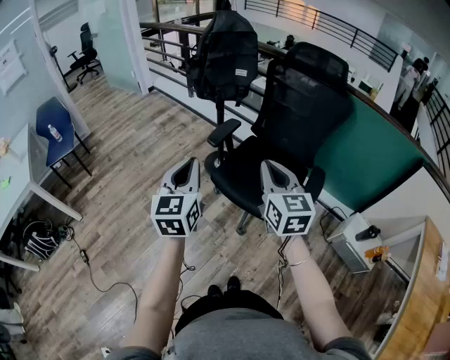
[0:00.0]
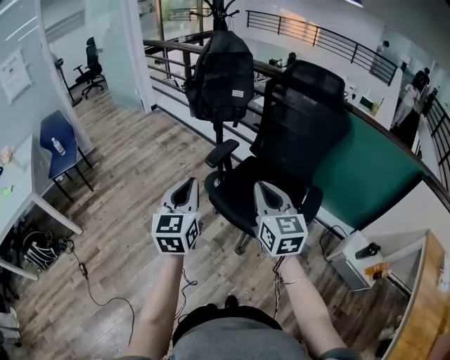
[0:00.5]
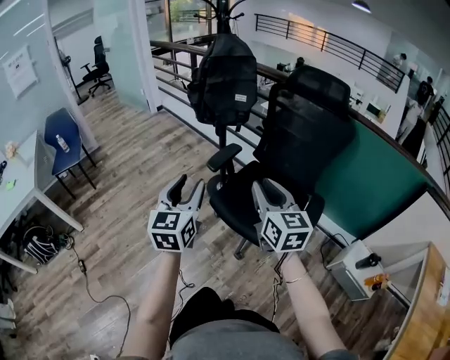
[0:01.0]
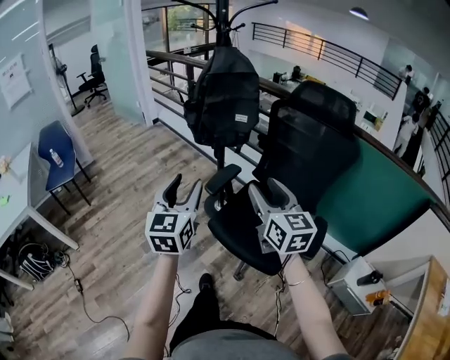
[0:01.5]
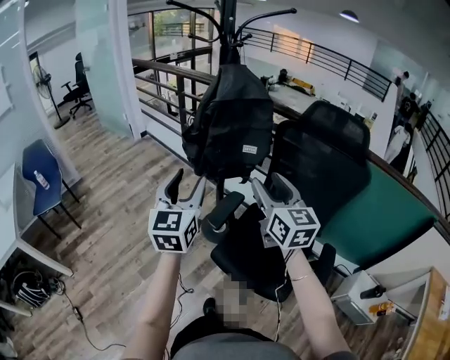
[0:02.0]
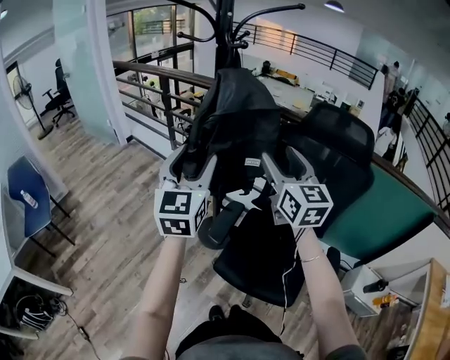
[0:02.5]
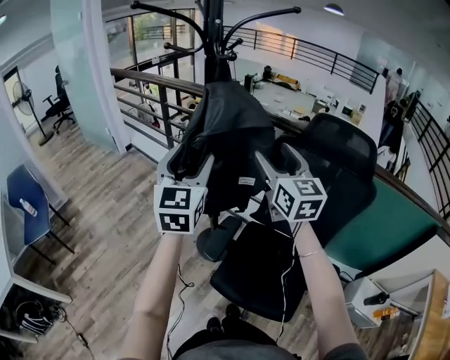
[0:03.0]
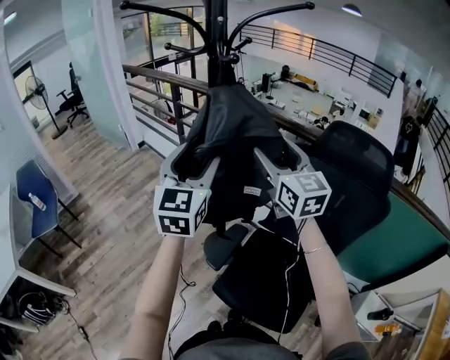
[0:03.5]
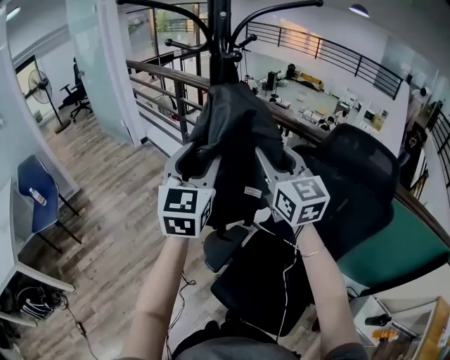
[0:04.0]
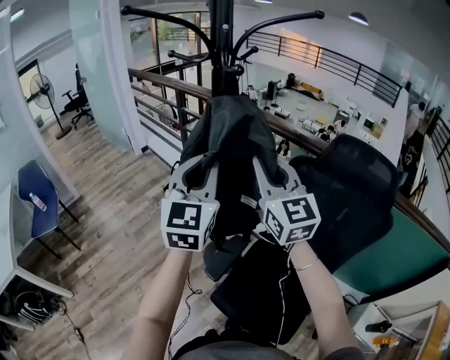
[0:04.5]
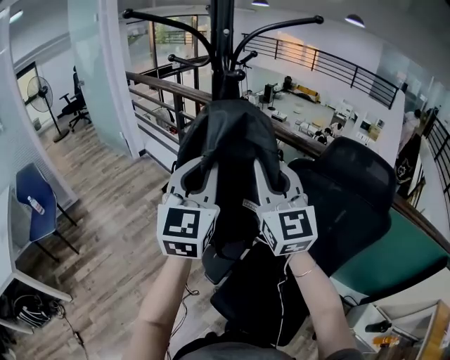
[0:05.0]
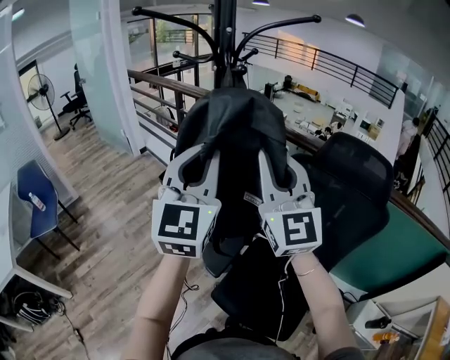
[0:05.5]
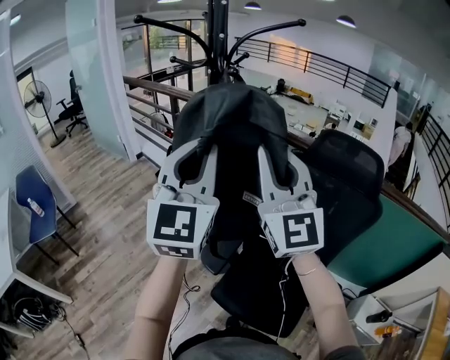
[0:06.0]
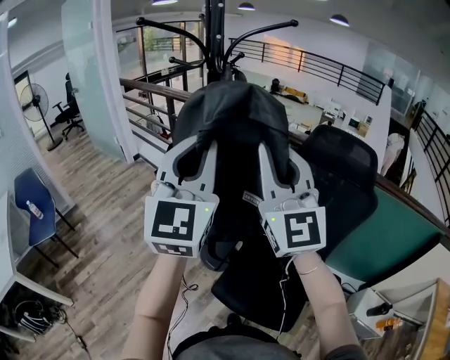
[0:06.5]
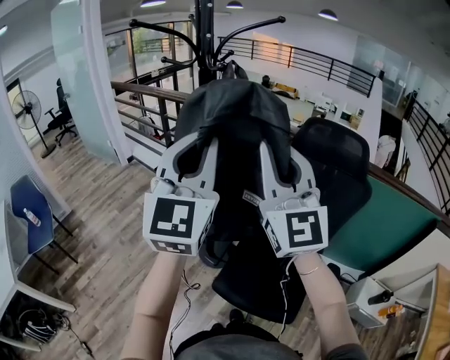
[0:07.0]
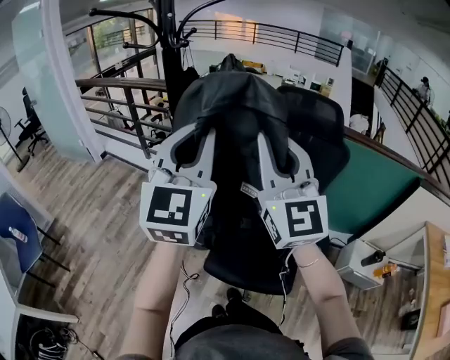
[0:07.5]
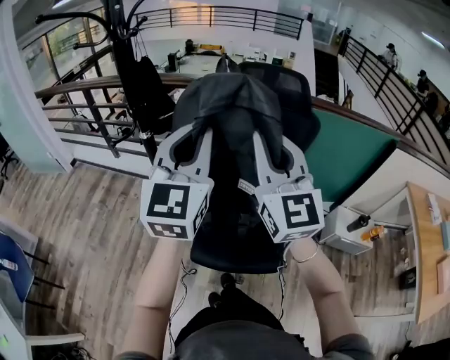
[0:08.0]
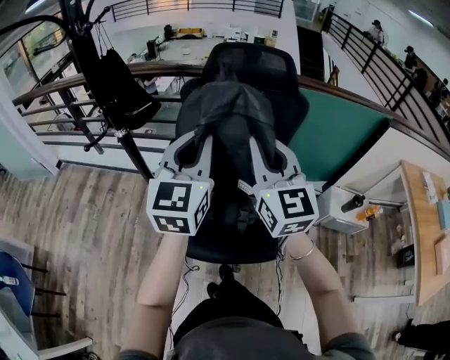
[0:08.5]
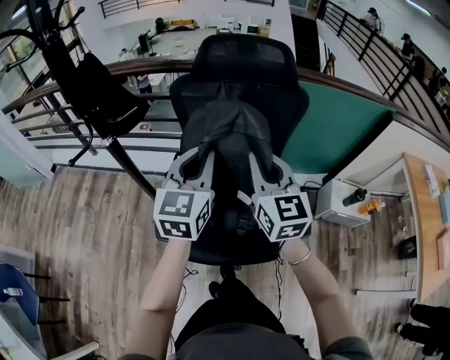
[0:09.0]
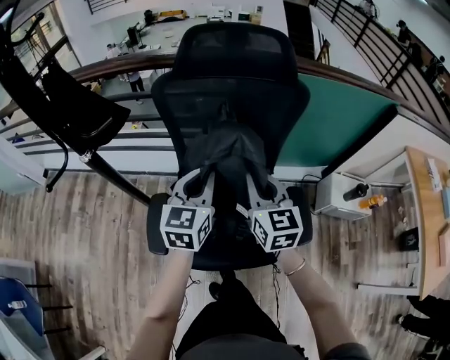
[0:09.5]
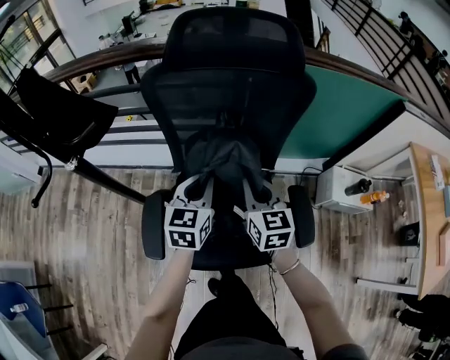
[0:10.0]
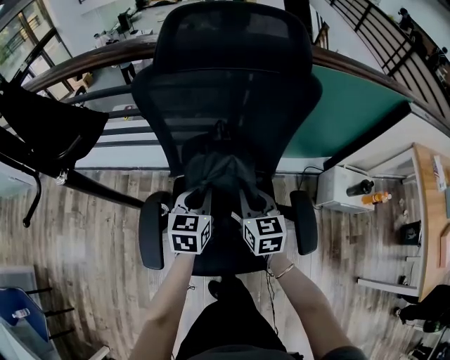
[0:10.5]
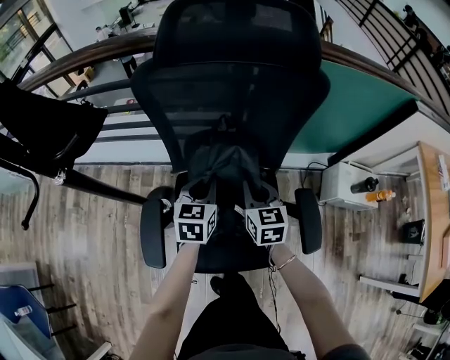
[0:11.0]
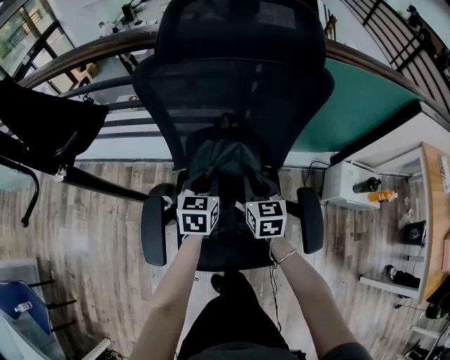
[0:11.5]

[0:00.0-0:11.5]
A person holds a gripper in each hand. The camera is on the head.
0:00.0 to 0:02.0: Both grippers move forward, roughly 30 cm. The left gripper opens; the right gripper opens up.
0:02.0 to 0:04.0: The two grippers go approximately 20 cm forward.
0:04.0 to 0:06.0: The grippers both shift backward and upward by approximately 15 cm. The right gripper changes its angle by approximately 30 degrees, and closes, while the left gripper closes.
0:06.0 to 0:07.5: The left gripper moves to the right and backward, some 10 cm. Meanwhile the right gripper is displaced backward and to the right by approximately 10 cm.
0:07.5 to 0:09.5: The left gripper travels downward, forward and to the right by about 40 cm, and rotates some 40 degrees. The right gripper travels downward and to the right by about 35 cm, and tilts its fingers roughly 30 degrees downward.
0:09.5 to 0:11.5: Both grippers move downward and forward, about 20 cm.

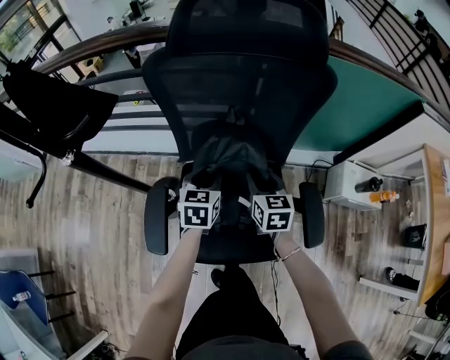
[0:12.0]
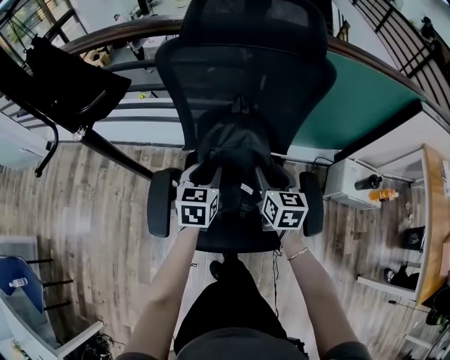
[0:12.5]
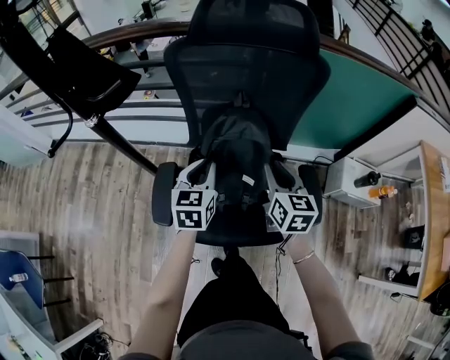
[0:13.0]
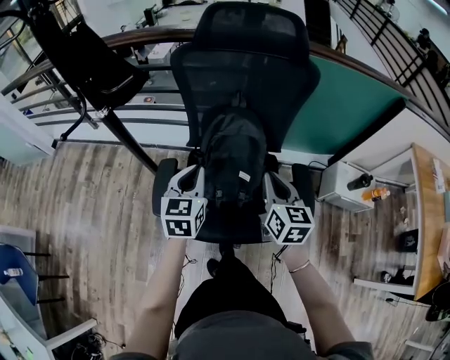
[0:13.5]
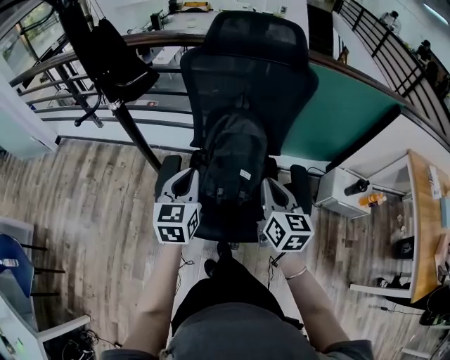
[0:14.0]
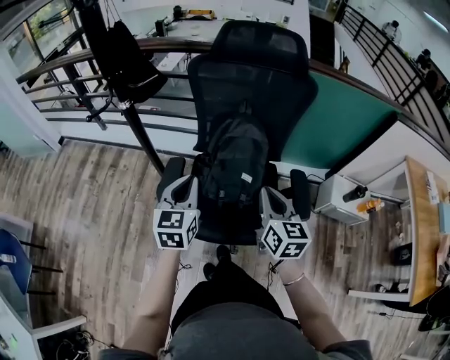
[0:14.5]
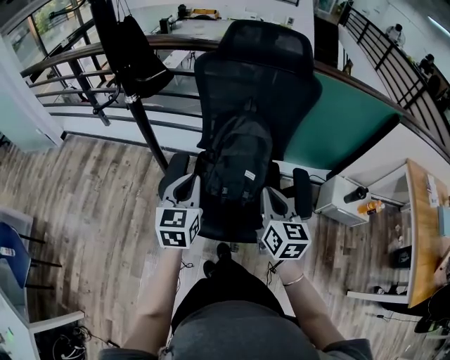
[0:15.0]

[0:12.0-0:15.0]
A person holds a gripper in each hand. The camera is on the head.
0:12.0 to 0:13.5: Both grippers move backward and upward, about 20 cm. The left gripper closes its fingers. The right gripper closes up.
0:13.5 to 0:15.0: Both grippers travel together backward, some 10 cm.

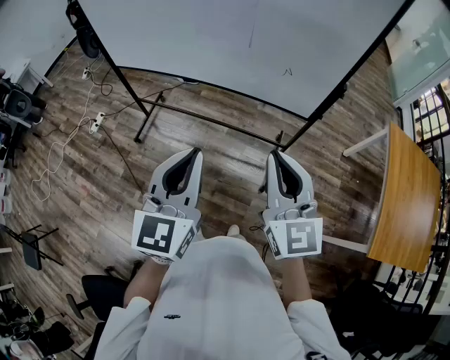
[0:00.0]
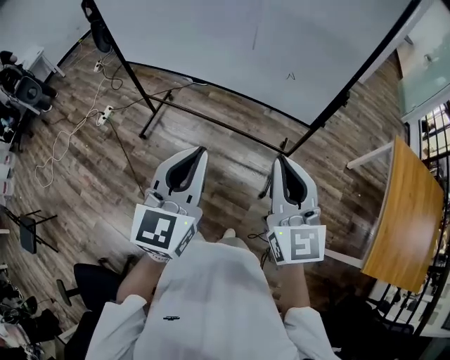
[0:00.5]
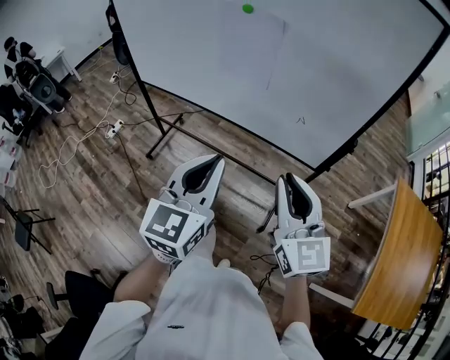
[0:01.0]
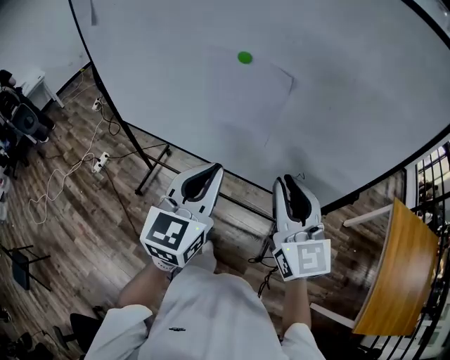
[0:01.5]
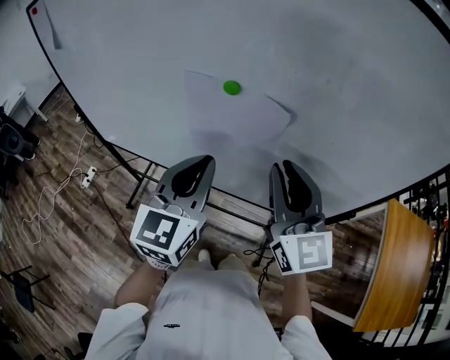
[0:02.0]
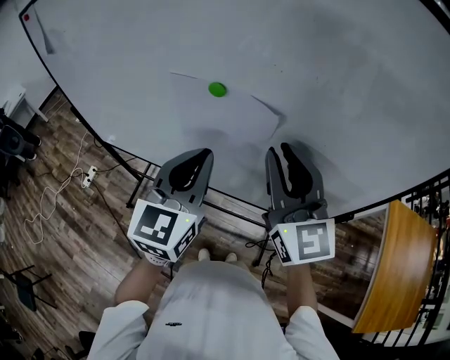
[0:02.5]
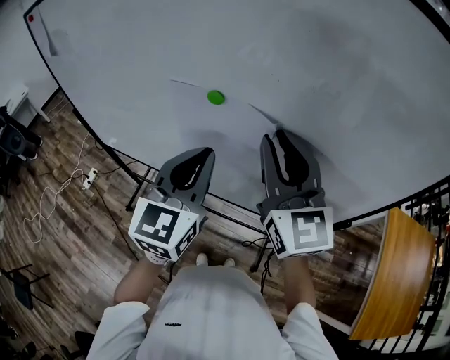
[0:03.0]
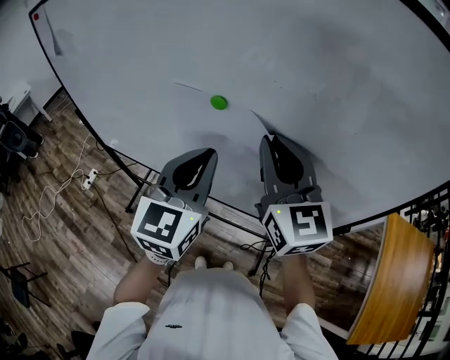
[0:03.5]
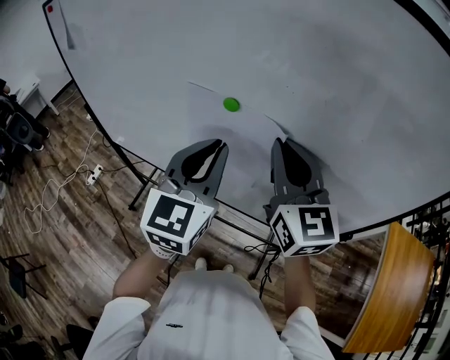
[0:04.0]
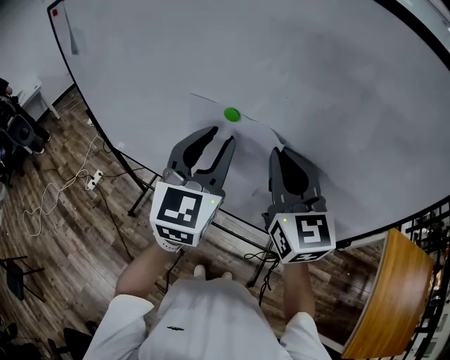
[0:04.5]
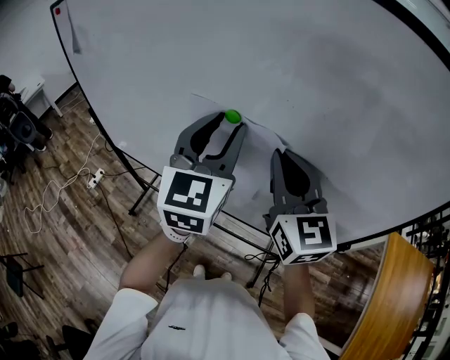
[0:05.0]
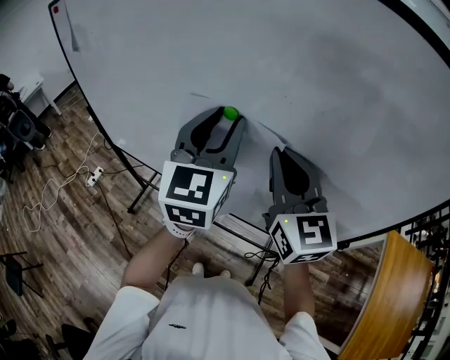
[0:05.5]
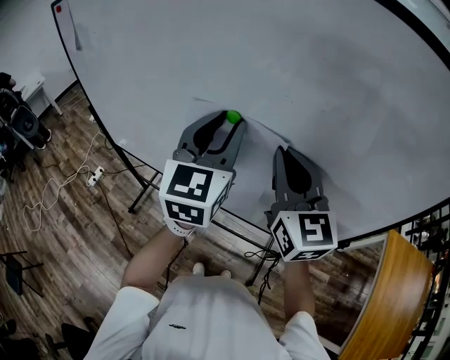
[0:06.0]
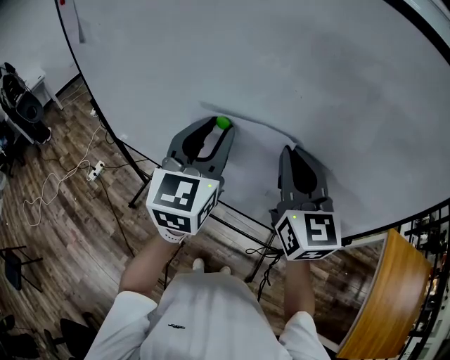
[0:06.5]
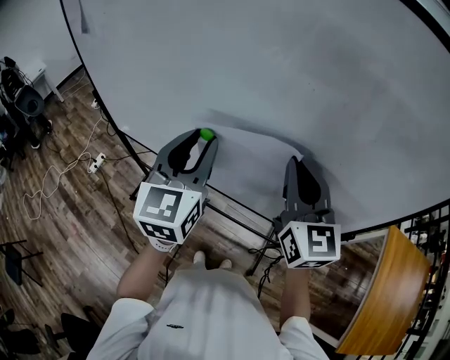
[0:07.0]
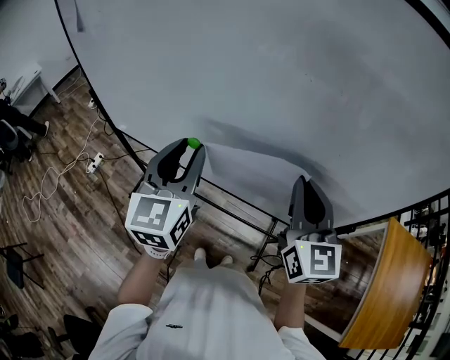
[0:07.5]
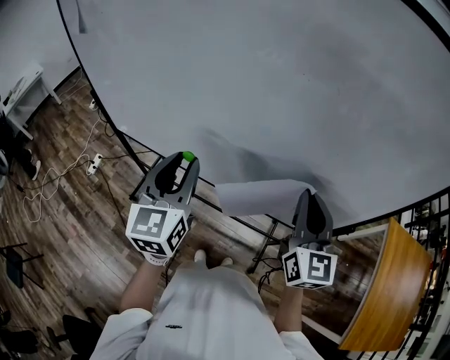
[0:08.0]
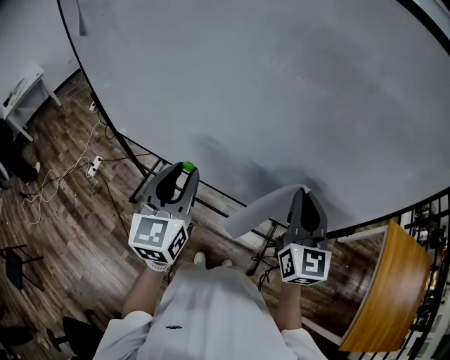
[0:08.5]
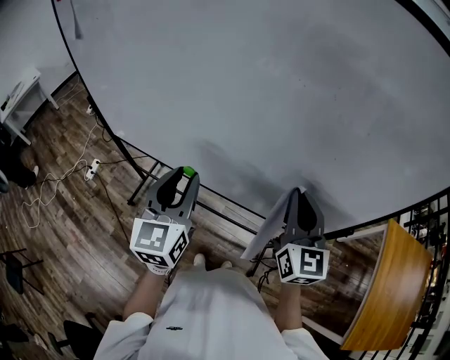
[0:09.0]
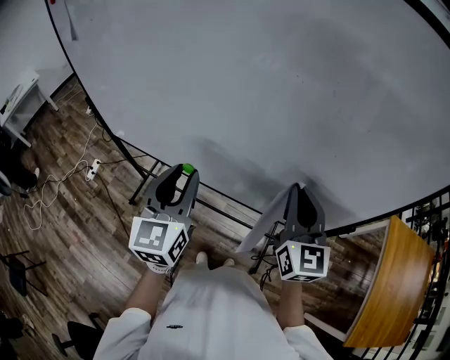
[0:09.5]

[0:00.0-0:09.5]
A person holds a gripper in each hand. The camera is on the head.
0:00.0 to 0:02.0: Both grippers move forward, some 35 cm.
0:02.0 to 0:04.0: The right gripper is displaced forward by some 5 cm, while the left gripper shifts by approximately 5 cm.
0:04.0 to 0:05.5: The left gripper is displaced upward by some 5 cm, and opens its fingers.
0:05.5 to 0:07.5: The right gripper is displaced backward and downward by about 10 cm. Meanwhile the left gripper heads downward, to the left and backward, covering roughly 15 cm.
0:07.5 to 0:09.5: The grippers move only a little.

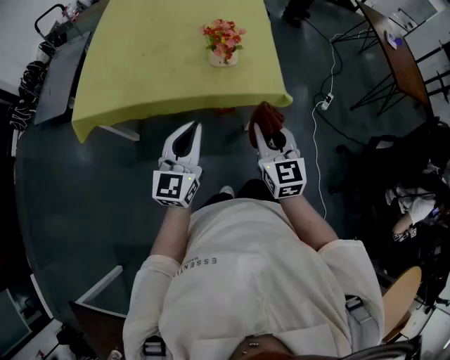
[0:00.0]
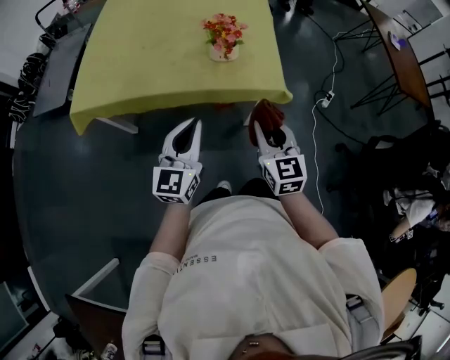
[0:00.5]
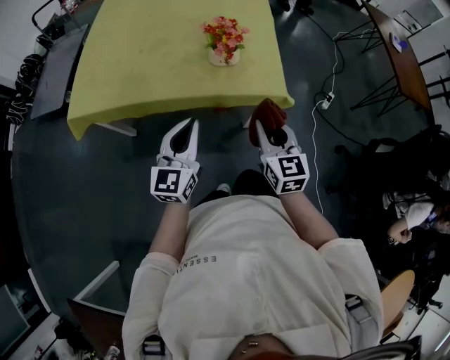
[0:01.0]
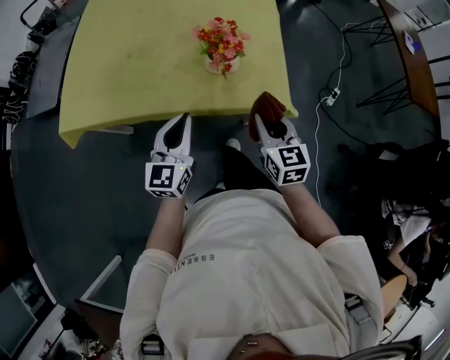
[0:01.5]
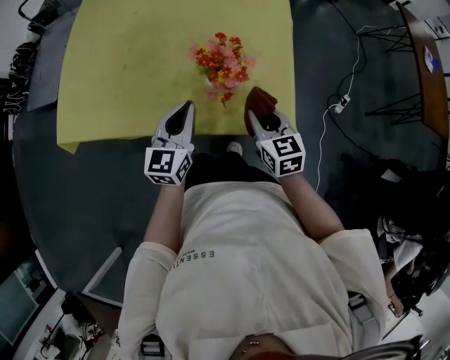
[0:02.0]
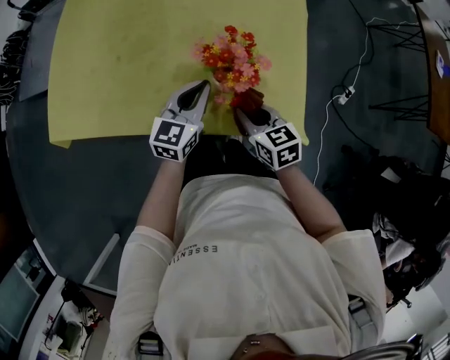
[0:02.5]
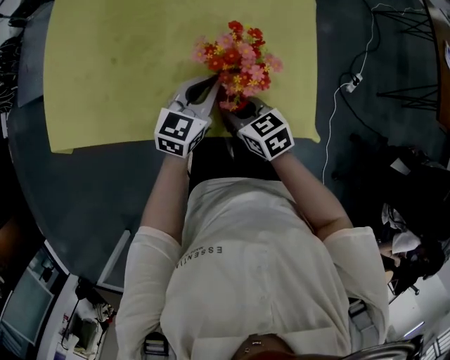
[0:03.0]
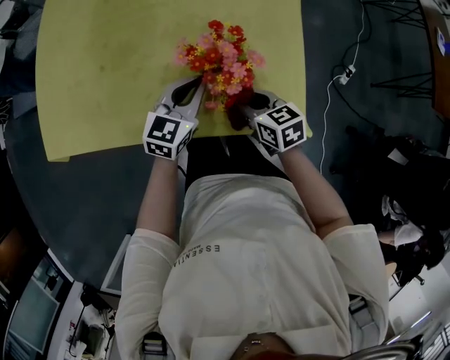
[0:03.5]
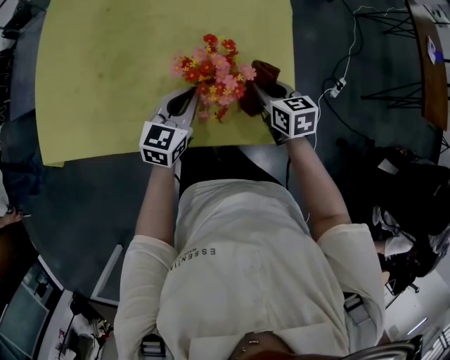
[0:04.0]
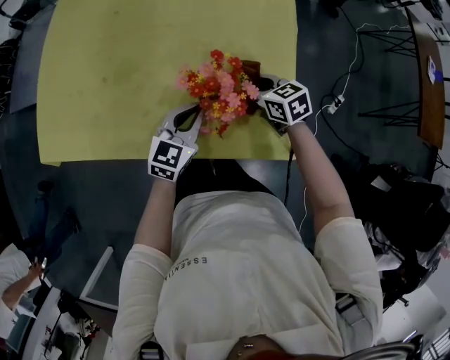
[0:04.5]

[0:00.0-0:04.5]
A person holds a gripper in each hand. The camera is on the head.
0:00.0 to 0:02.0: The right gripper shifts approximately 30 cm forward and downward, and changes its angle by some 20 degrees. Meanwhile the left gripper is displaced forward by approximately 25 cm.
0:02.0 to 0:04.5: The left gripper moves downward, forward and to the right, roughly 10 cm. Meanwhile the right gripper moves left and right over about 15 cm, changing direction 2 times, and swivels about 20 degrees.
